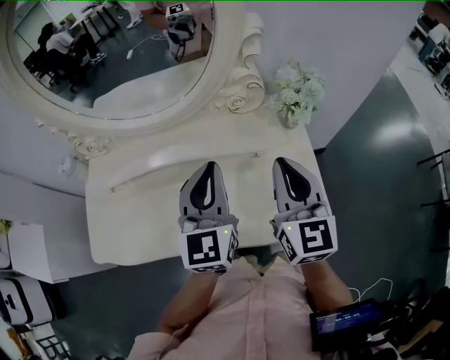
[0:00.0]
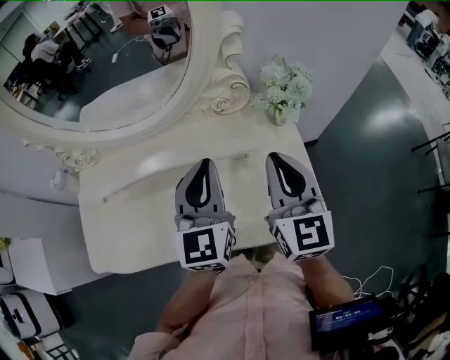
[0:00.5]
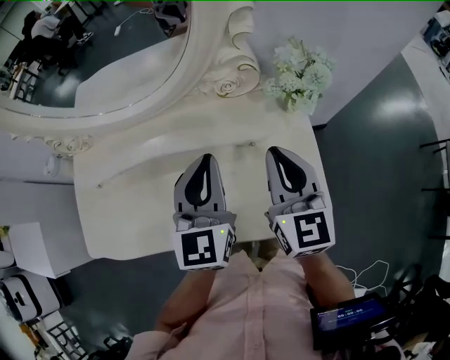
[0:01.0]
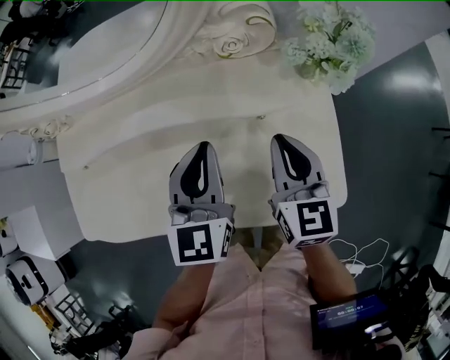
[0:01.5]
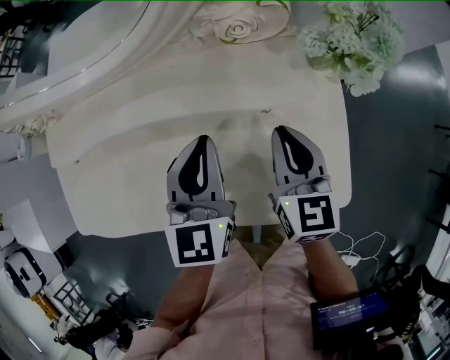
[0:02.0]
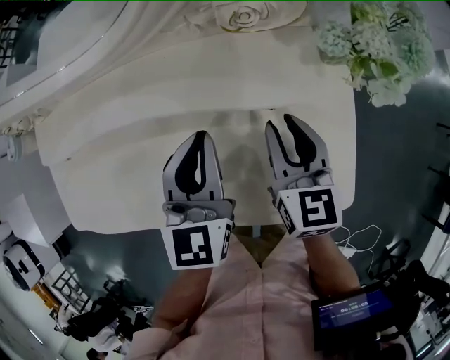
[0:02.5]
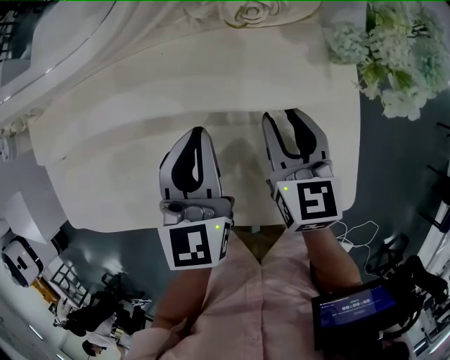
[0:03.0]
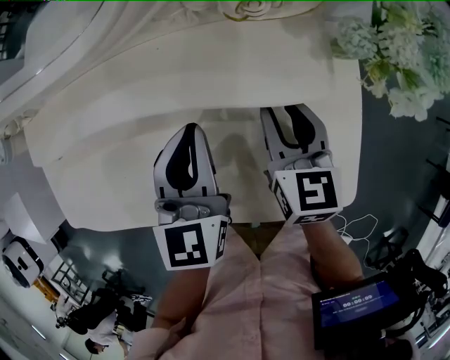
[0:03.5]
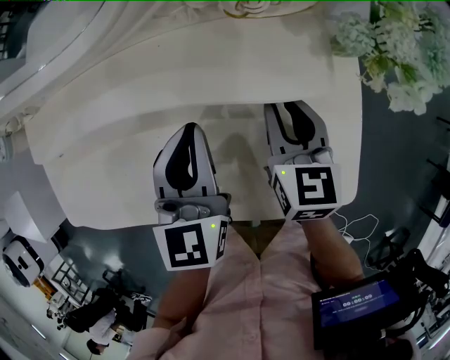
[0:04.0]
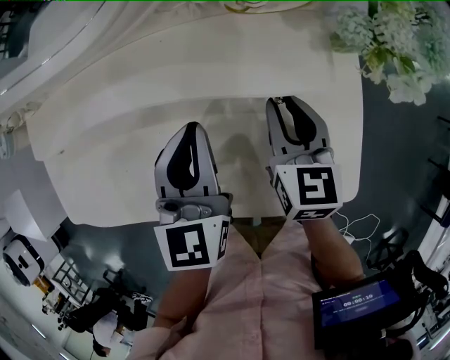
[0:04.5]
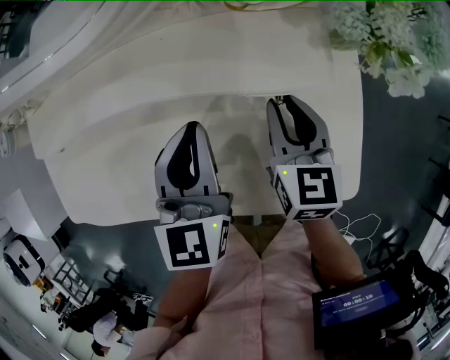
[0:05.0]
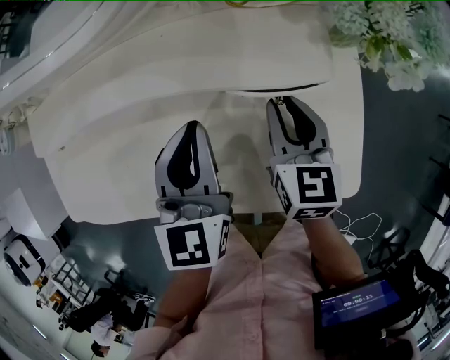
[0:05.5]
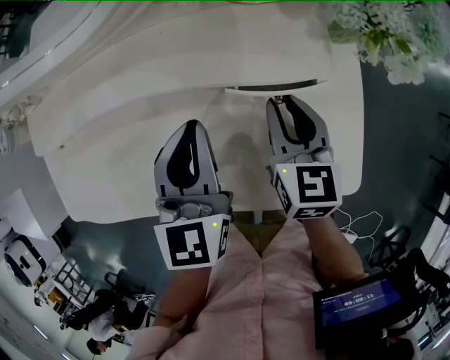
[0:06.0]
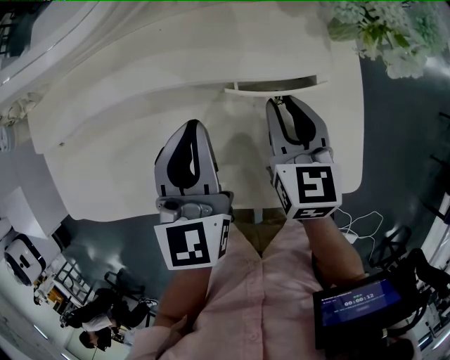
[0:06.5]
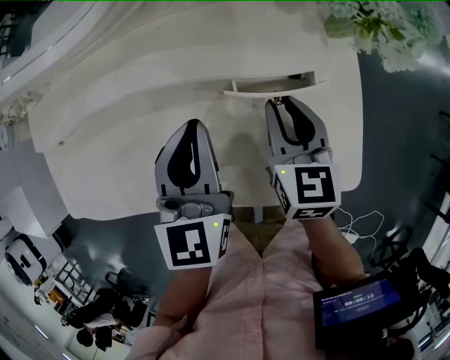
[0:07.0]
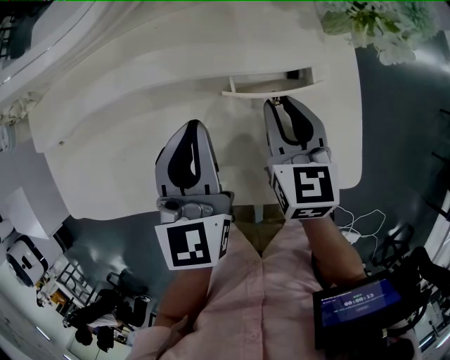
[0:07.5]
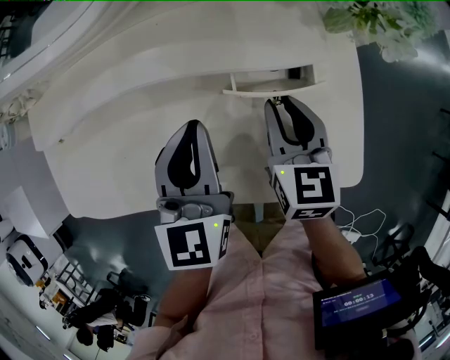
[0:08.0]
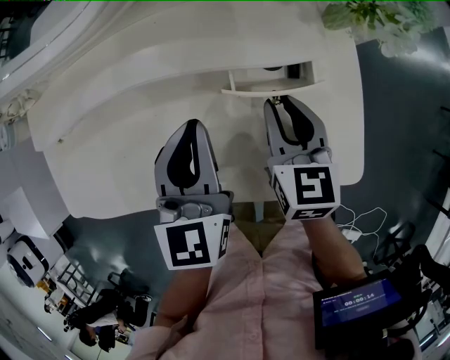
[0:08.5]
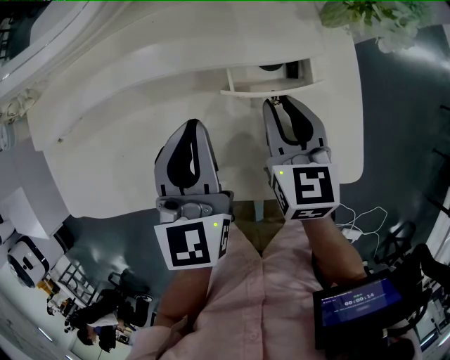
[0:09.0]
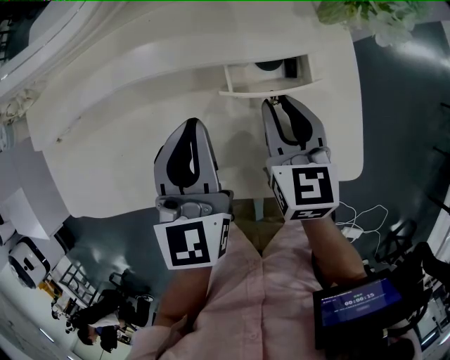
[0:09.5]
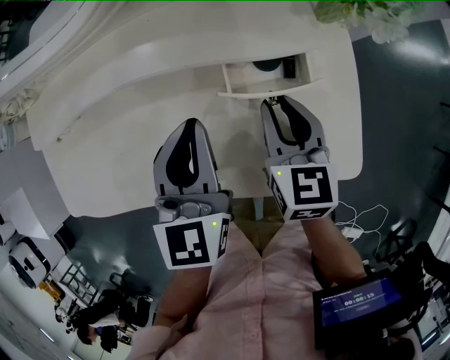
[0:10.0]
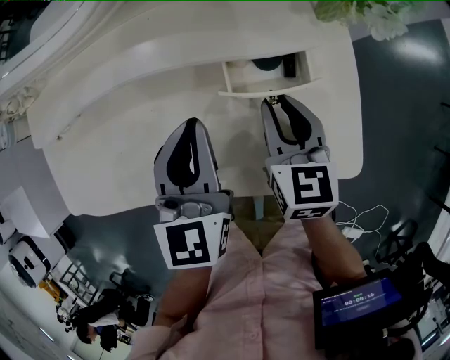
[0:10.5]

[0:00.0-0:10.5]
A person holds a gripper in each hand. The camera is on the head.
0:00.0 to 0:02.0: The two grippers go roughly 15 cm downward. The right gripper turns by approximately 20 degrees.
0:02.0 to 0:04.0: The right gripper travels downward by about 5 cm, and opens.
0:04.0 to 0:06.5: The grippers move only a little.
0:06.5 to 0:08.5: The grippers move only a little.
0:08.5 to 0:10.5: The two grippers keep their place.

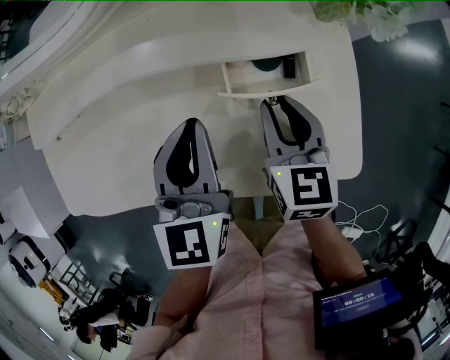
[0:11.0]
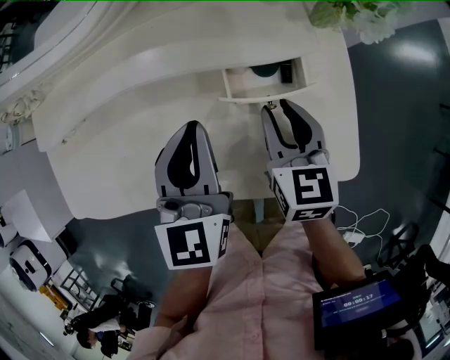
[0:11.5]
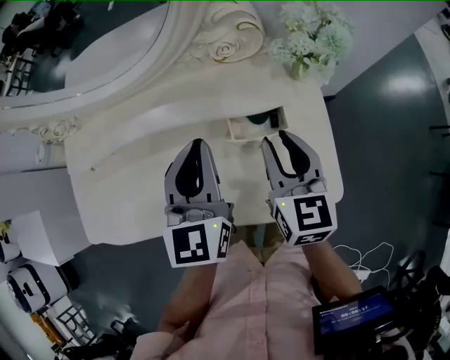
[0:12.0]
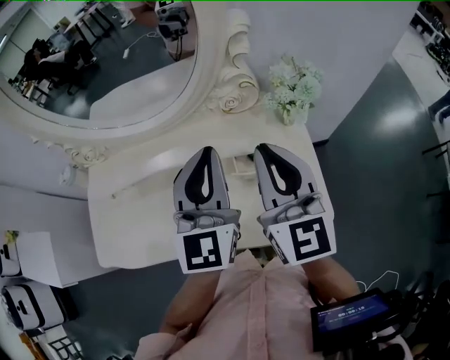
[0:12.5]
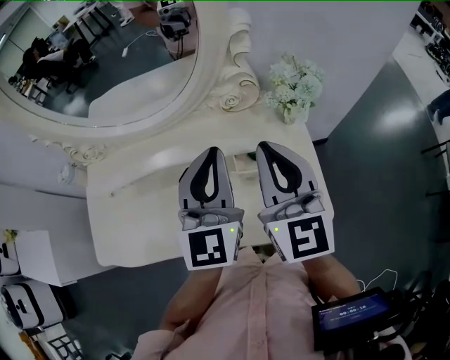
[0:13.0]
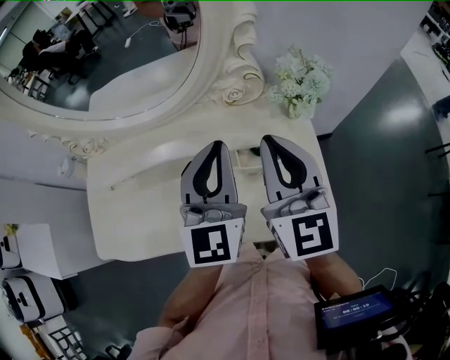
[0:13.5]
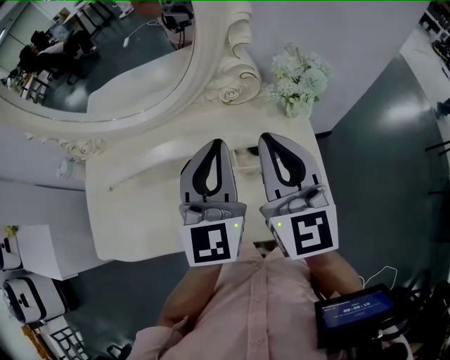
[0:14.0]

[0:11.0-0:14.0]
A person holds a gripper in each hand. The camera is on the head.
0:11.0 to 0:12.5: The grippers both shift upward by approximately 25 cm. The left gripper changes its angle by about 30 degrees; the right gripper tips its fingers upward by approximately 30 degrees.
0:12.5 to 0:14.0: There are only small adjustments of the grippers.

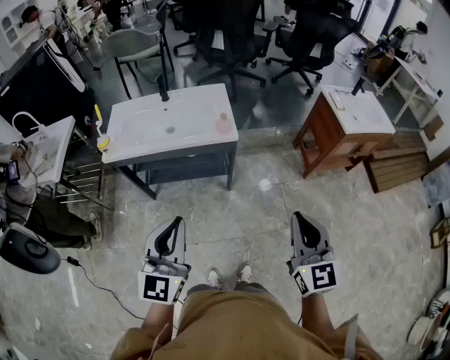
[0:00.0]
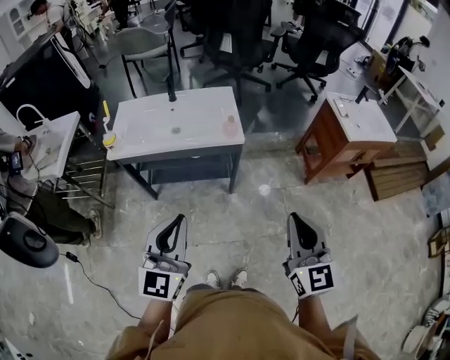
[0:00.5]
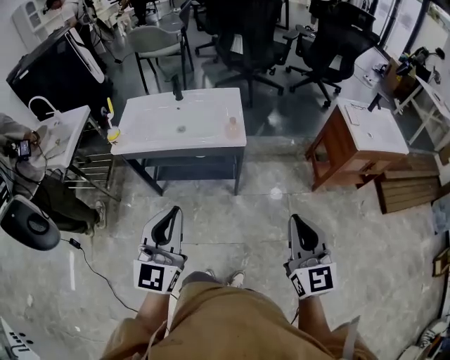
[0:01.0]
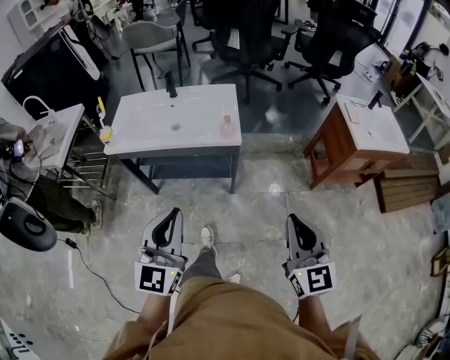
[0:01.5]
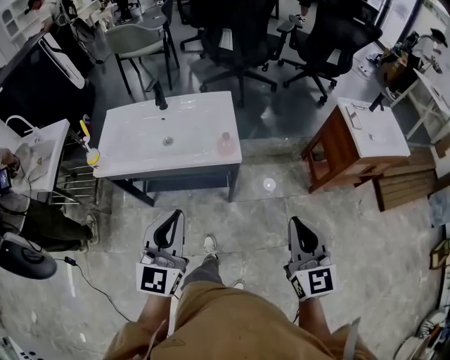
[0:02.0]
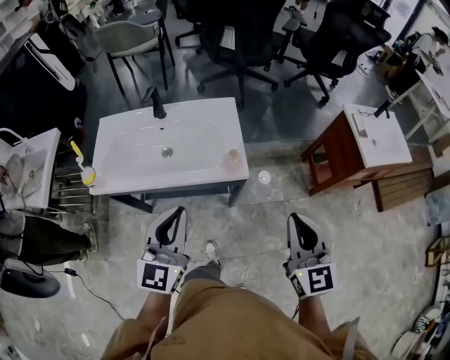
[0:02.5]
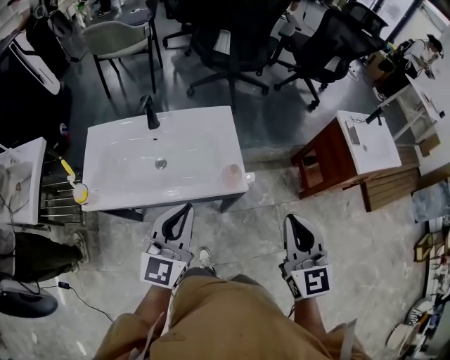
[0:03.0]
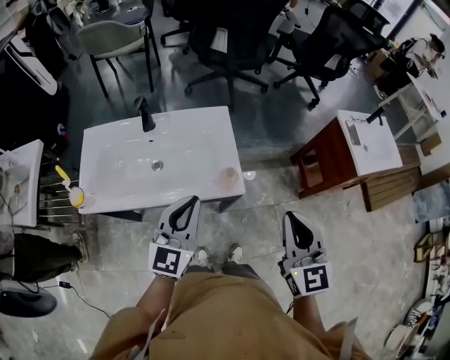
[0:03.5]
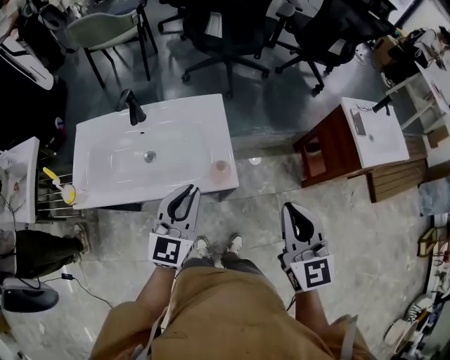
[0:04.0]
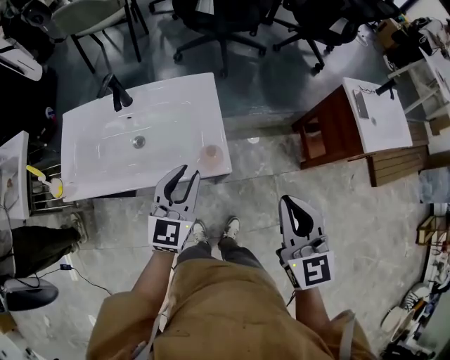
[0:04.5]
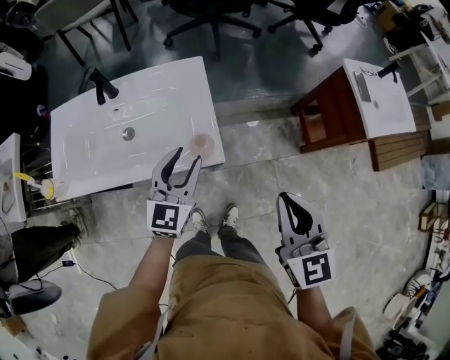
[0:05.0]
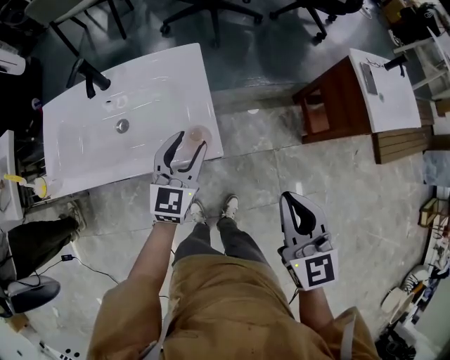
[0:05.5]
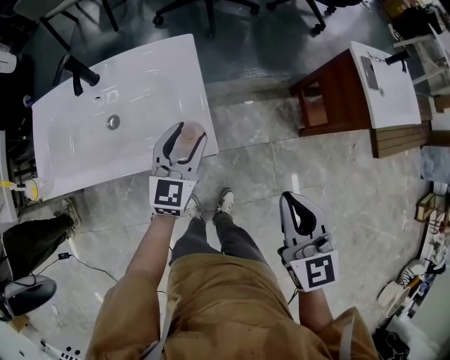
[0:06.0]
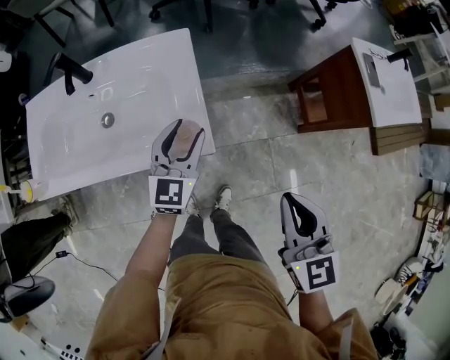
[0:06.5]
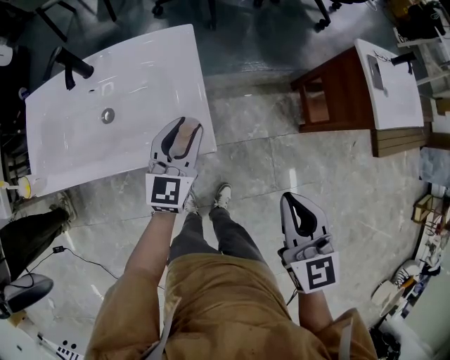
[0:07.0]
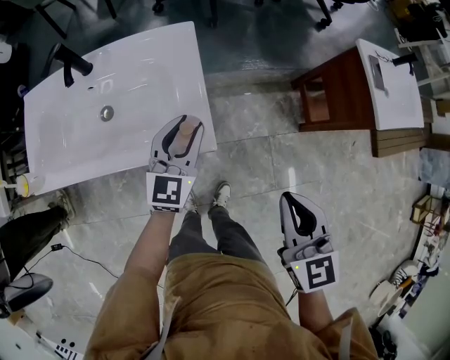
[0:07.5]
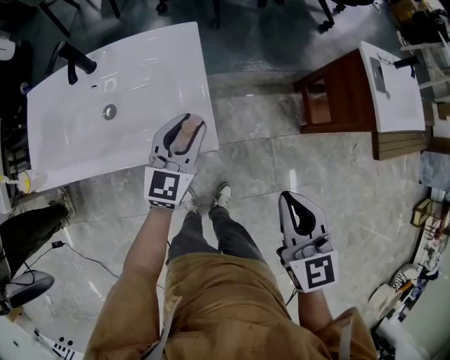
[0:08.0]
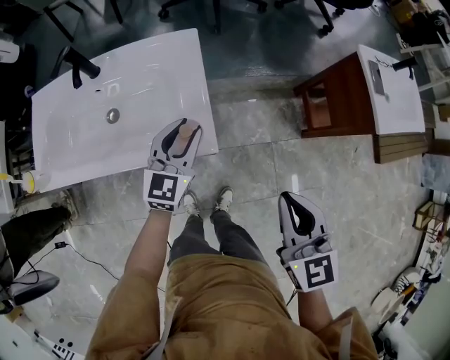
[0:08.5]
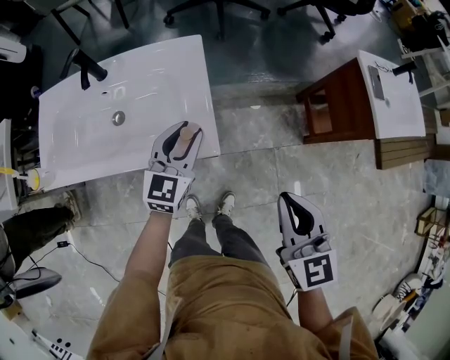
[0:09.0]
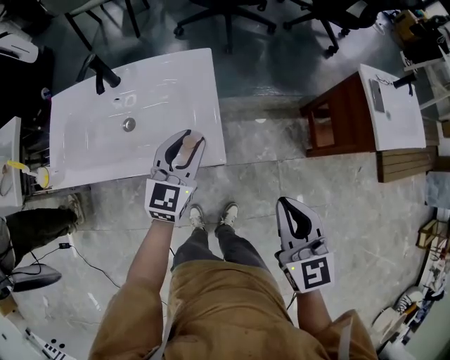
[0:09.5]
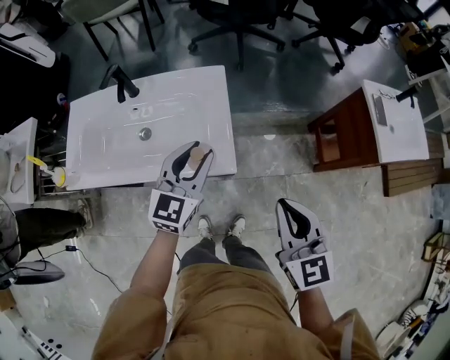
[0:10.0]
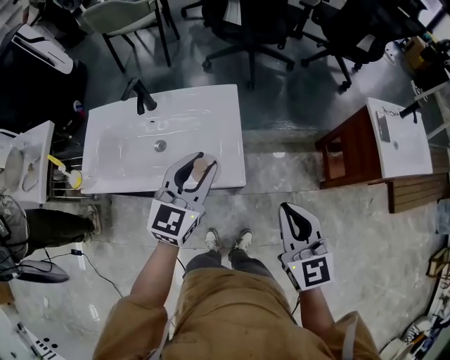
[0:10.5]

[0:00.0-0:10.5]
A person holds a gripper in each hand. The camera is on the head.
0:00.0 to 0:02.0: The grippers both shift forward by roughly 15 cm.
0:02.0 to 0:04.0: Both grippers move forward, roughly 20 cm.
0:04.0 to 0:06.5: The left gripper travels downward, forward and to the right by roughly 20 cm, and opens, while the right gripper moves downward and to the right, approximately 10 cm.
0:06.5 to 0:08.5: The two grippers keep their place.
0:08.5 to 0:10.5: The left gripper moves upward, about 15 cm, while the right gripper moves upward, approximately 5 cm.

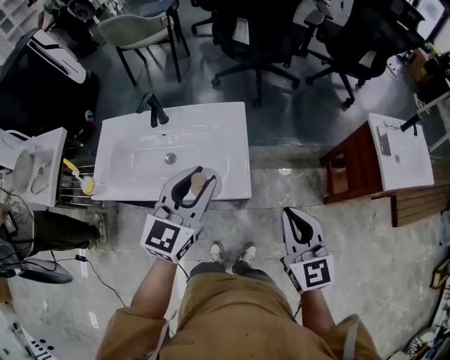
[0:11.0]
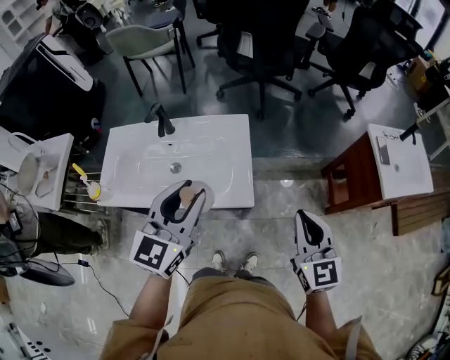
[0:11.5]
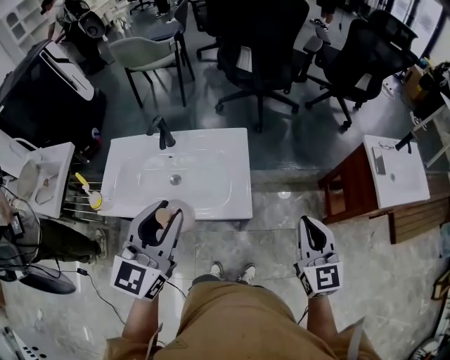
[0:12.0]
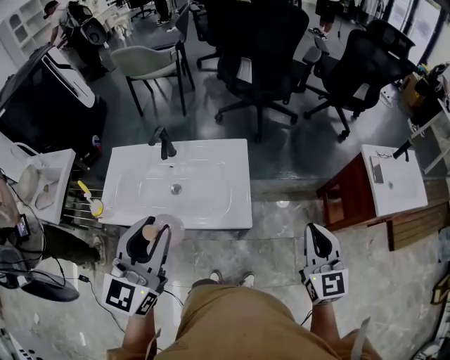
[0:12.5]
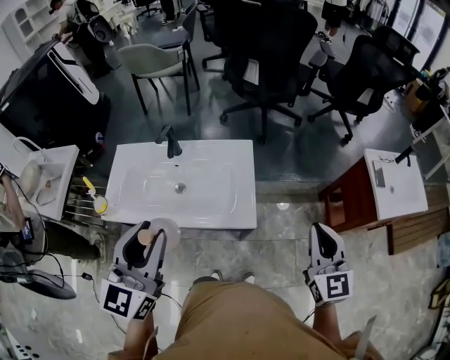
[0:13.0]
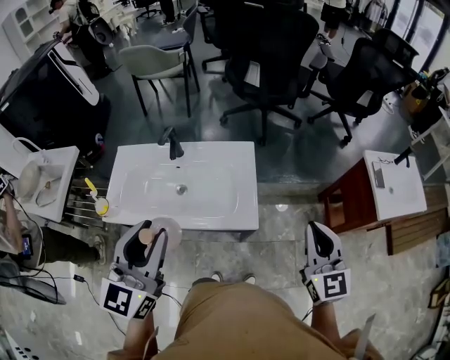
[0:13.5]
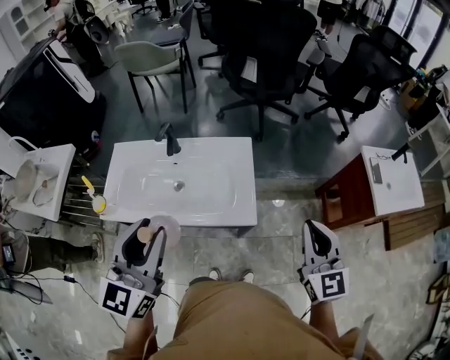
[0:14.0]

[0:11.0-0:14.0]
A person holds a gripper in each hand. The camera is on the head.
0:11.0 to 0:12.5: The left gripper travels upward, to the left and backward by roughly 15 cm. Meanwhile the right gripper is displaced to the right by approximately 5 cm.
0:12.5 to 0:14.0: The right gripper moves roughly 5 cm.
